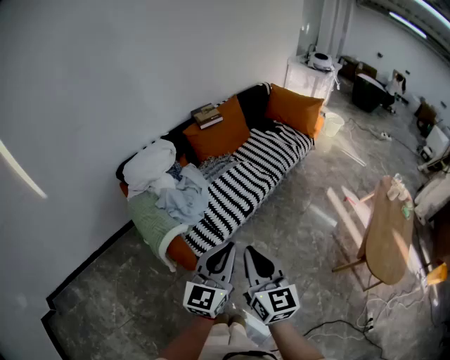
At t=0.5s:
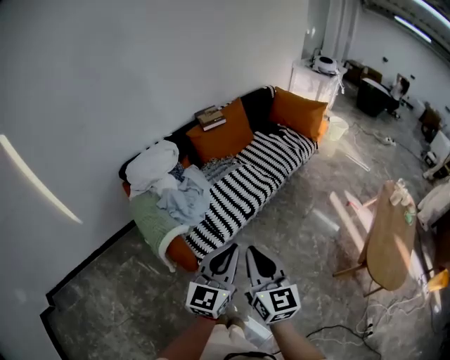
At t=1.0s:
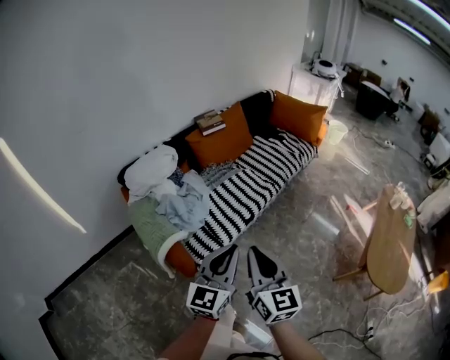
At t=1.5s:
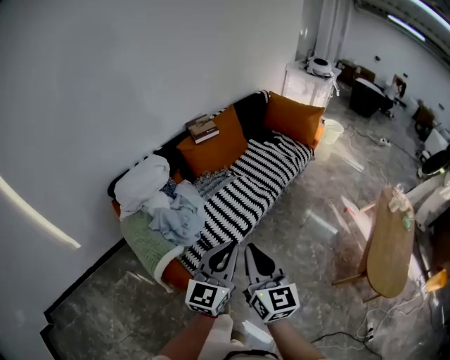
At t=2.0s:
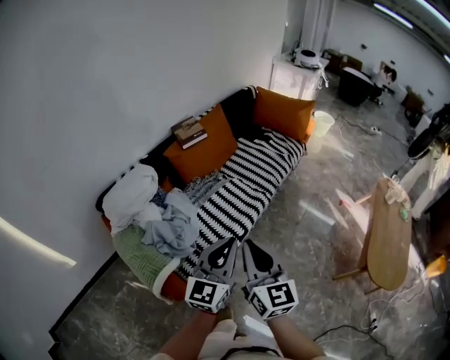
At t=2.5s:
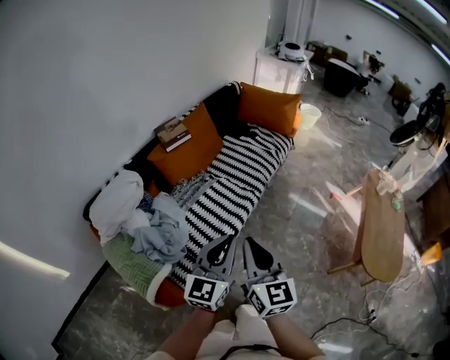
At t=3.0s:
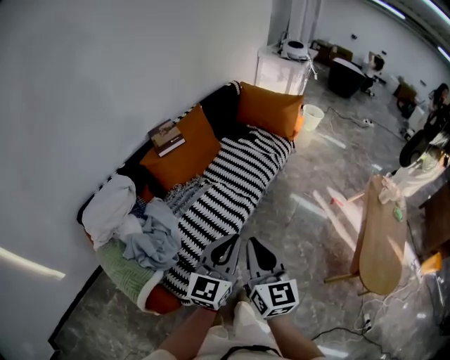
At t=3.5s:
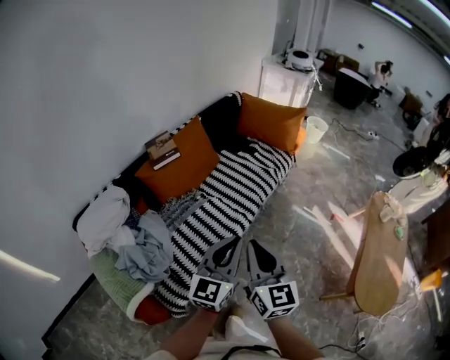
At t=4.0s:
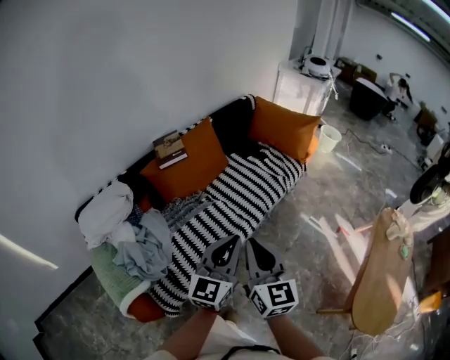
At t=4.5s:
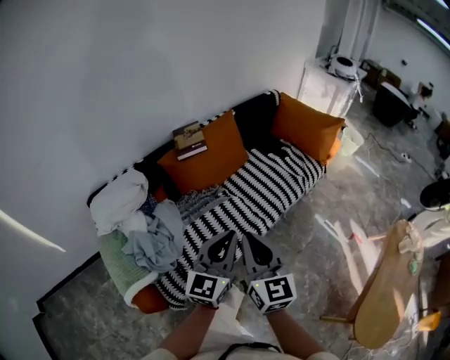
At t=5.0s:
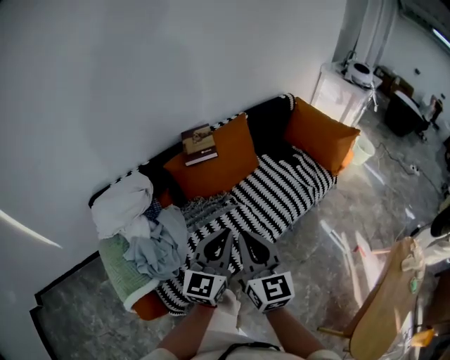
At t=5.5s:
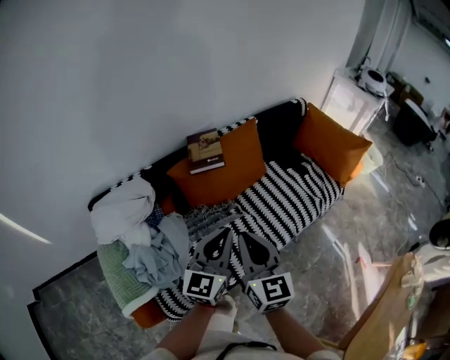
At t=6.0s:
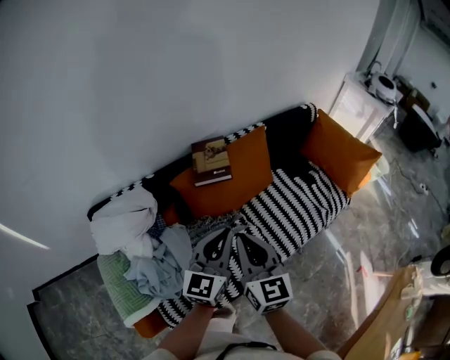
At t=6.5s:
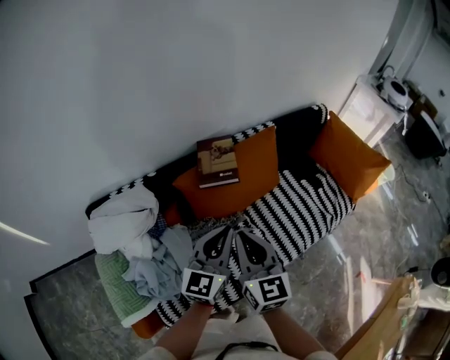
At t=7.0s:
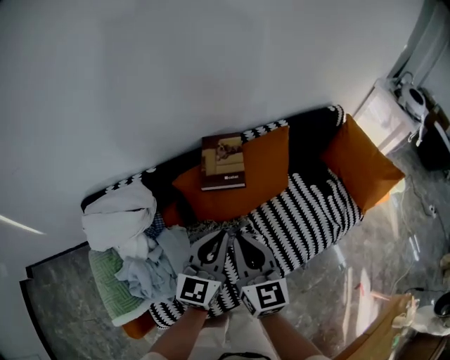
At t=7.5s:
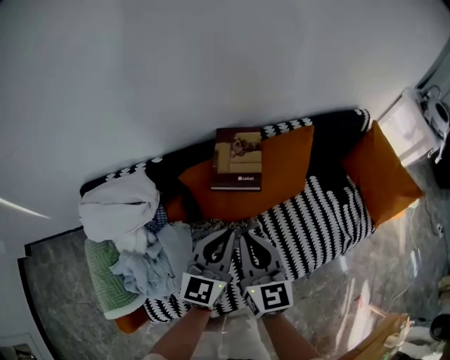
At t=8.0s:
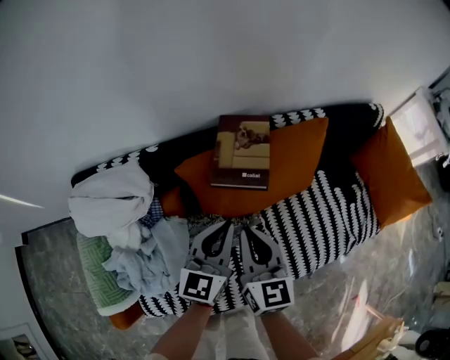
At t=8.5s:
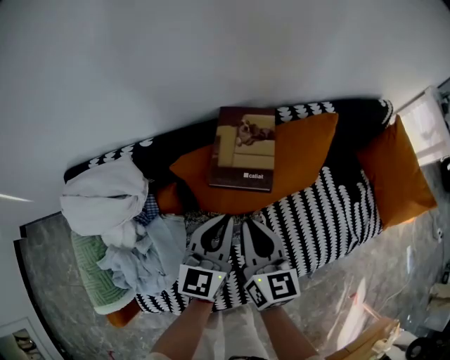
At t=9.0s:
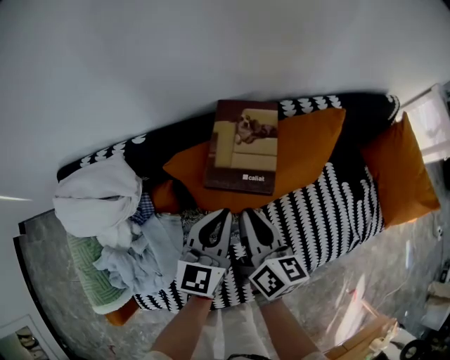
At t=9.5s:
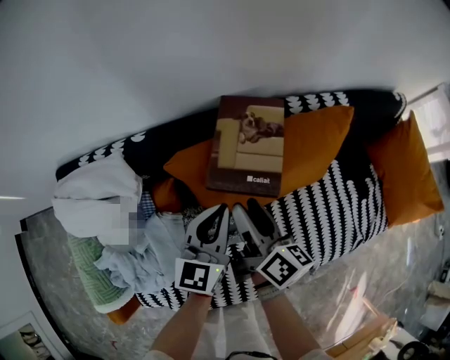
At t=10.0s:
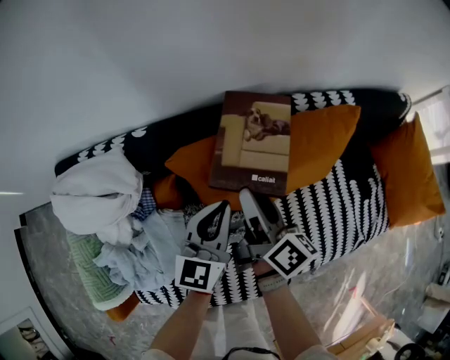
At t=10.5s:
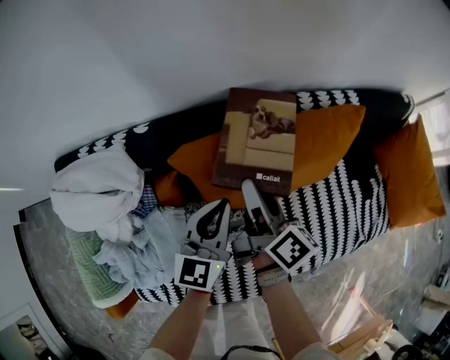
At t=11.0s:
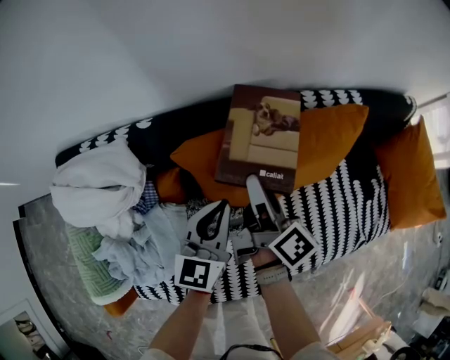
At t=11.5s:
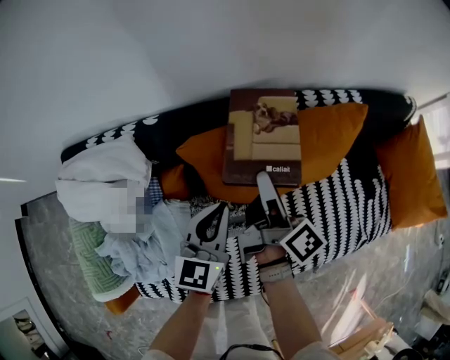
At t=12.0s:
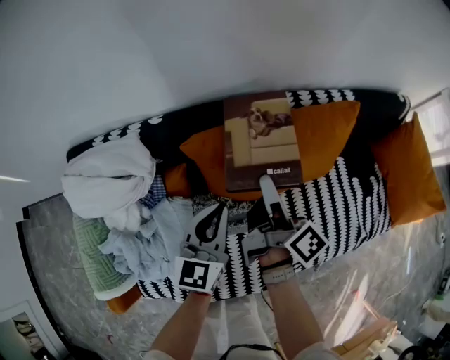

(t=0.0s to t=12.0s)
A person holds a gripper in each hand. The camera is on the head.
t=0.0s - t=2.0s: Both grippers travel together forward, about 20 cm.
t=2.0s - t=4.0s: Both grippers move forward and to the right, about 20 cm.
t=4.0s - t=6.0s: The two grippers go some 25 cm forward and to the left. The left gripper rotates about 20 degrees. Meanwhile the right gripper turns by approximately 20 degrees.
t=6.0s - t=8.0s: Both grippers move forward and downward, approximately 20 cm.
t=8.0s - t=10.0s: The left gripper travels downward and forward by about 10 cm. The right gripper heads forward and downward, covering roughly 15 cm, rotates around the line of its fingers by some 50 degrees, clockwise from behind, and opens its fingers.
t=10.0s - t=12.0s: The left gripper changes place by approximately 5 cm.

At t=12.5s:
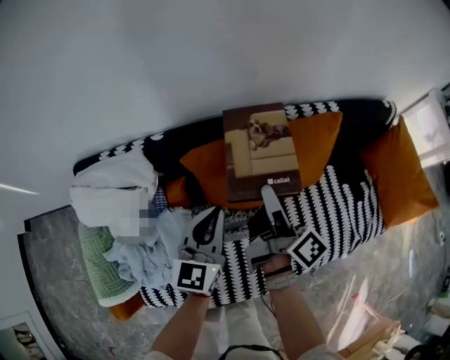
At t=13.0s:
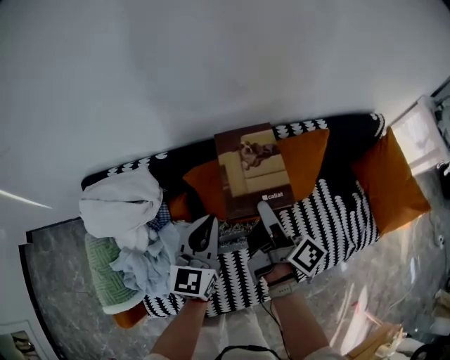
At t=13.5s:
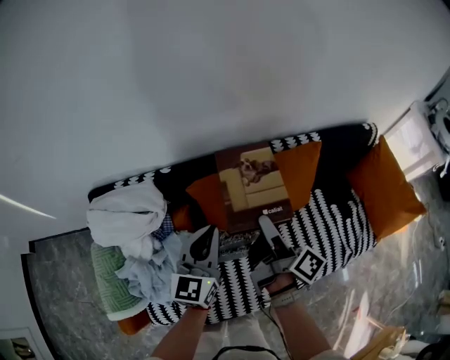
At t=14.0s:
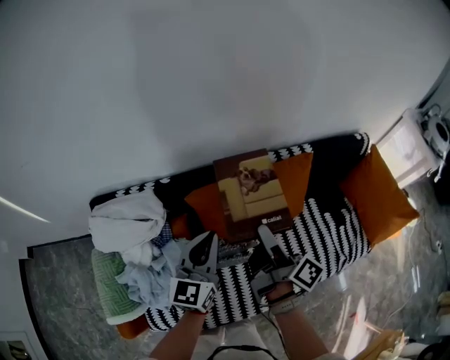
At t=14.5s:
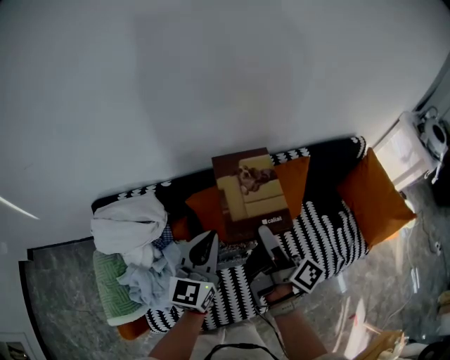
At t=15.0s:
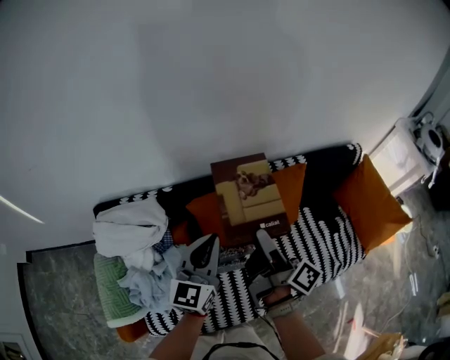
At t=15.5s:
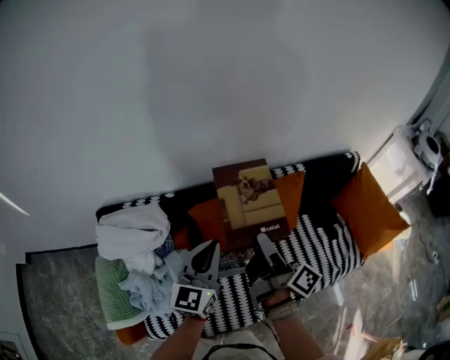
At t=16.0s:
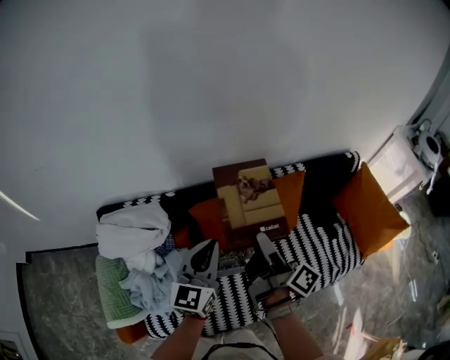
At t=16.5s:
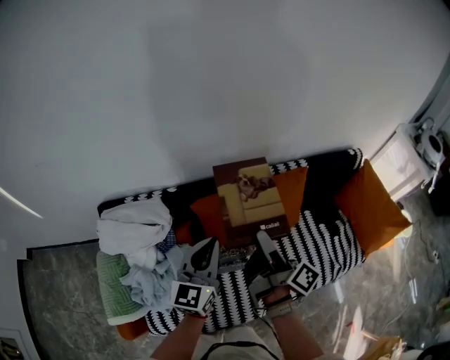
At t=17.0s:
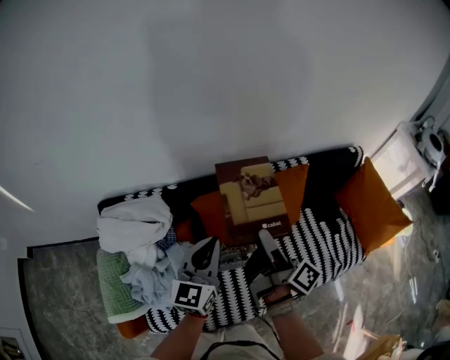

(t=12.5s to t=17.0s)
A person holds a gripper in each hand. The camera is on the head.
t=12.5s - t=14.5s: The right gripper travels upward and backward by roughly 15 cm. The left gripper is displaced upward by about 10 cm.
t=14.5s - t=17.0s: The grippers move only a little.

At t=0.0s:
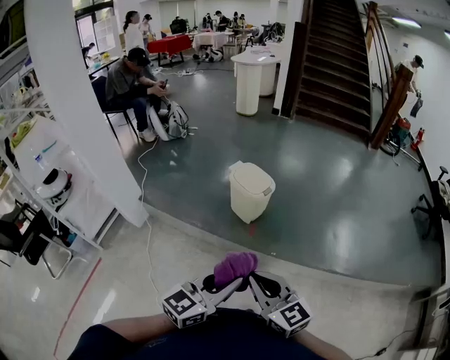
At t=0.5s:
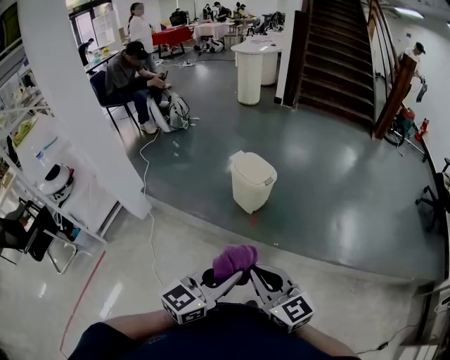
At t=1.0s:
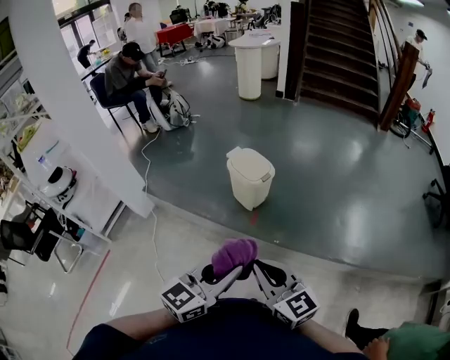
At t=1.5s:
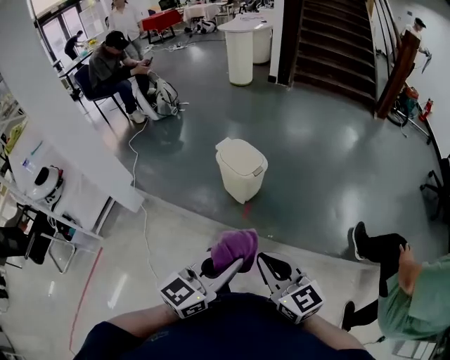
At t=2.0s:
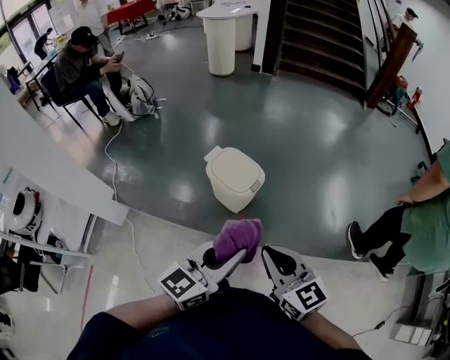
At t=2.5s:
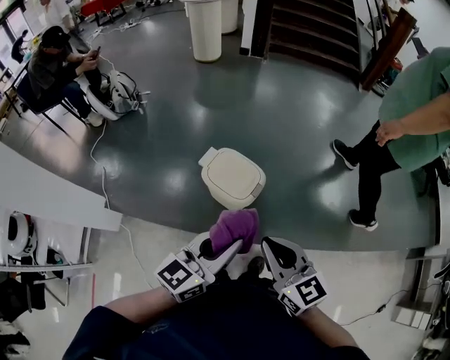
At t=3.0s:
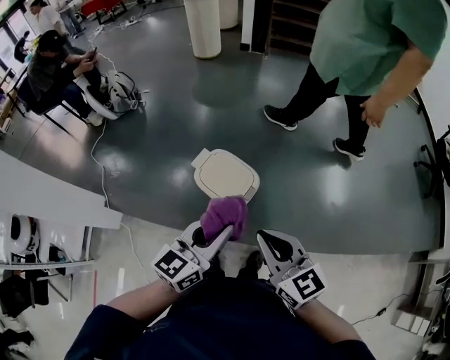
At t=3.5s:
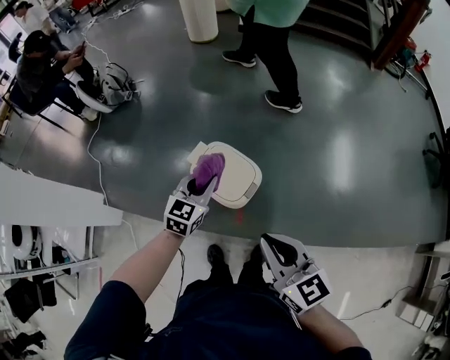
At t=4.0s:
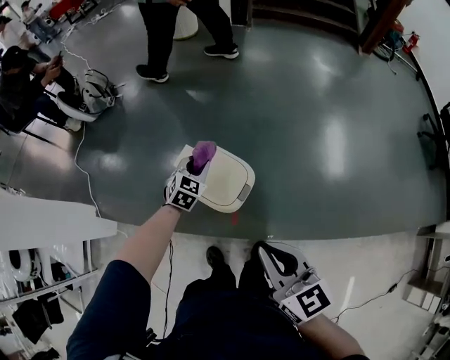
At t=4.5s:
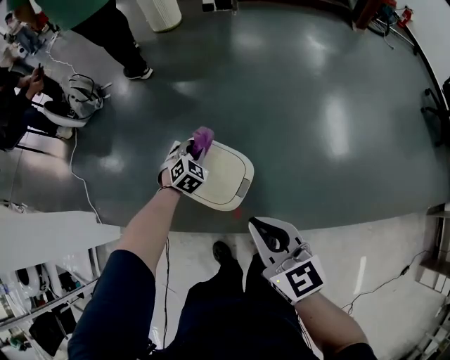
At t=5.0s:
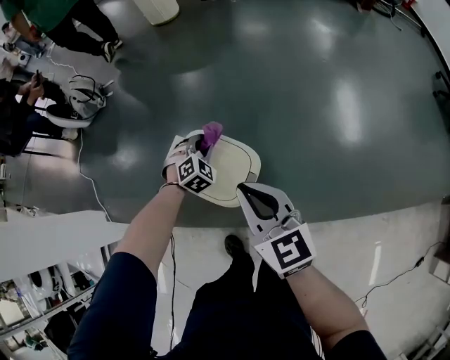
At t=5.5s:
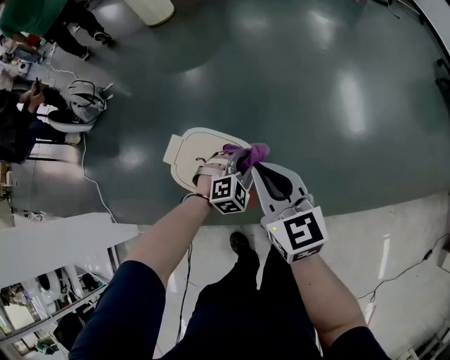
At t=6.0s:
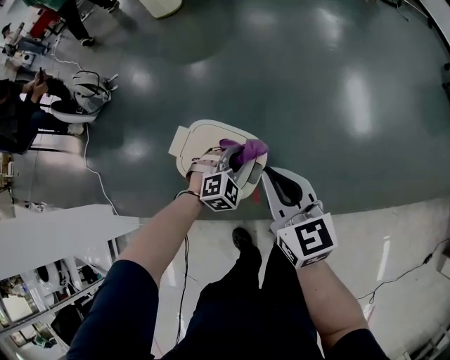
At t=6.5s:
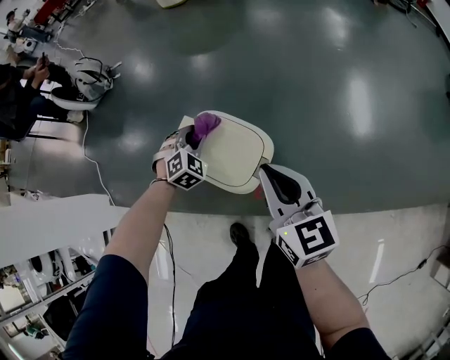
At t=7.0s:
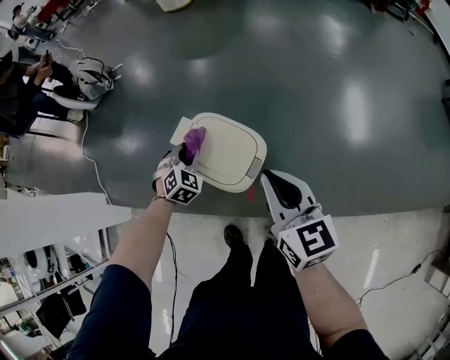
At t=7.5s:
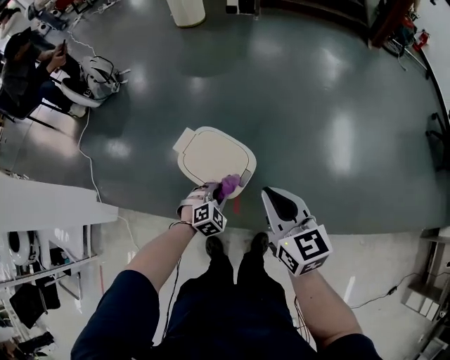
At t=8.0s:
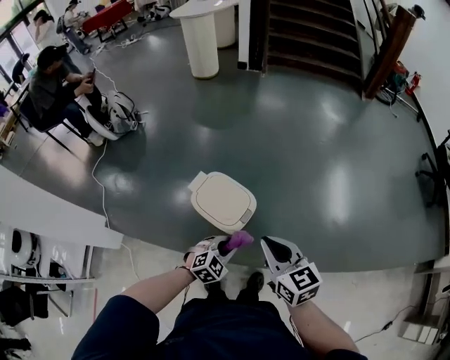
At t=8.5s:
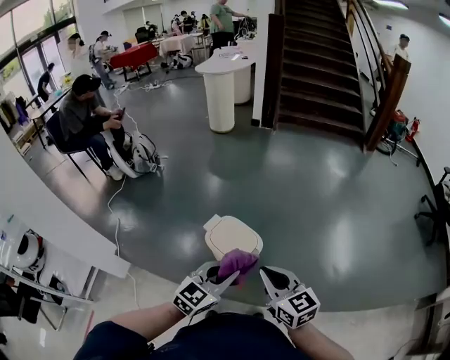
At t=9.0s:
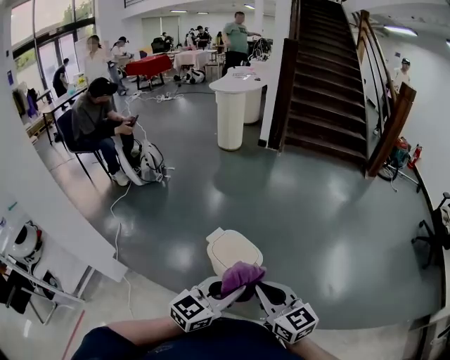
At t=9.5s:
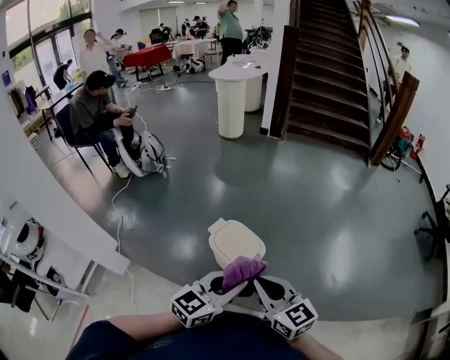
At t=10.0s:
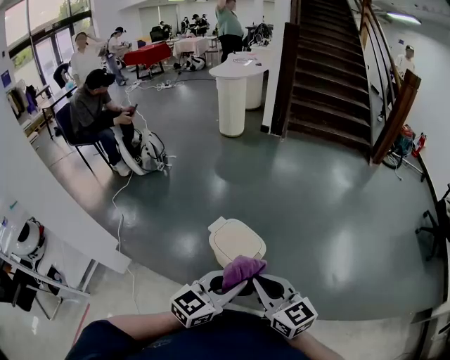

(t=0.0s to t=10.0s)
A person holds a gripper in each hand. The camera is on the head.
t=0.0s - t=2.0s: The two grippers go about 30 cm forward.
t=2.0s - t=4.0s: The right gripper shifts about 20 cm forward, while the left gripper moves forward and downward, about 50 cm, and angles its fingers downward, by approximately 40 degrees.
t=4.0s - t=6.0s: The right gripper goes roughly 20 cm forward and downward, while the left gripper moves to the right and downward, roughly 15 cm, and changes its angle by about 40 degrees.
t=6.0s - t=8.0s: Both grippers move backward and upward, roughly 20 cm. The left gripper changes its angle by approximately 20 degrees.
t=8.0s - t=10.0s: The right gripper travels upward, backward and to the left by roughly 15 cm. The left gripper goes about 30 cm upward, and tilts its fingers roughly 40 degrees upward.
